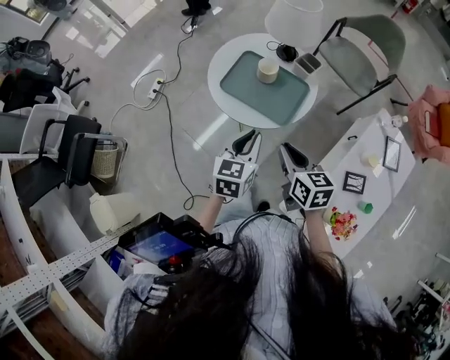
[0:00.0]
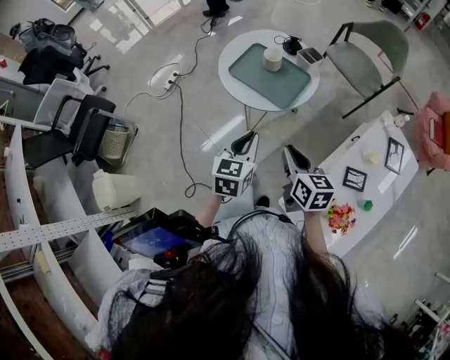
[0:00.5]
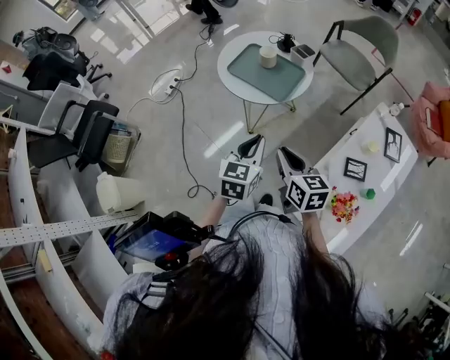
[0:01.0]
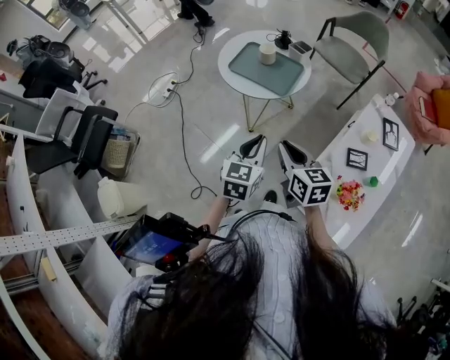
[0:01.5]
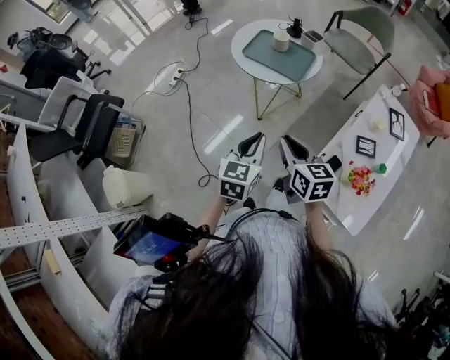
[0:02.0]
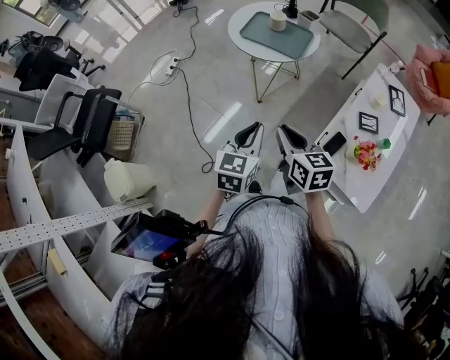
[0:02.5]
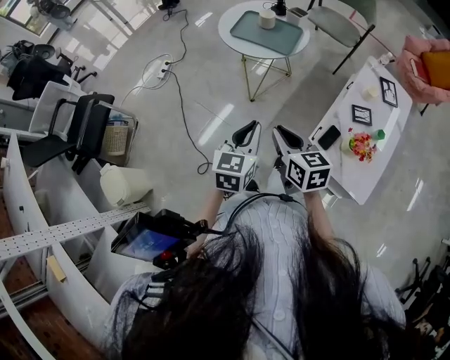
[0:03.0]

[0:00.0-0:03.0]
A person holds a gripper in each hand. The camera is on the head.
0:00.0 to 0:01.5: Both grippers travel together backward, some 20 cm.
0:01.5 to 0:03.0: Both grippers move backward and to the left, approximately 15 cm.

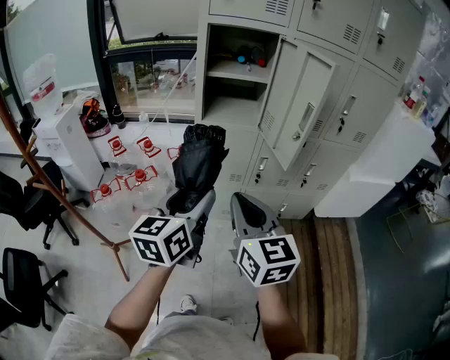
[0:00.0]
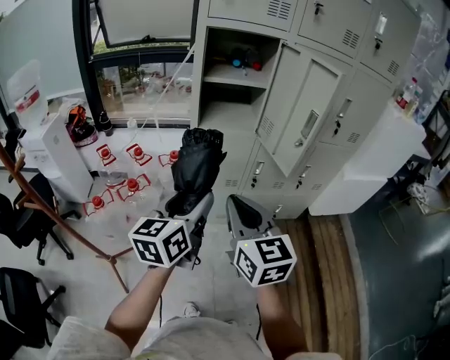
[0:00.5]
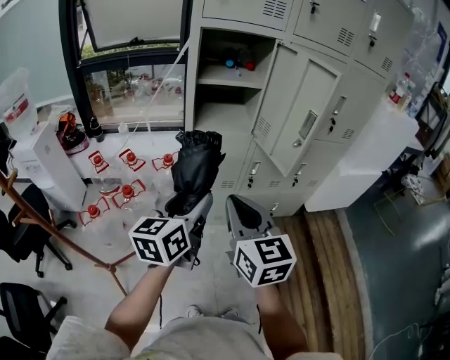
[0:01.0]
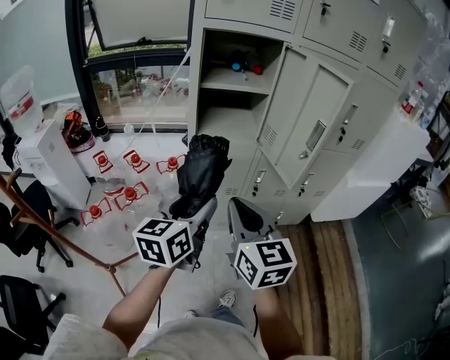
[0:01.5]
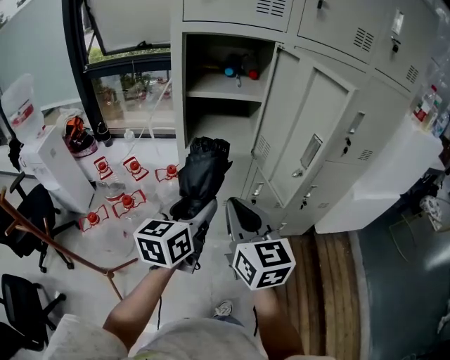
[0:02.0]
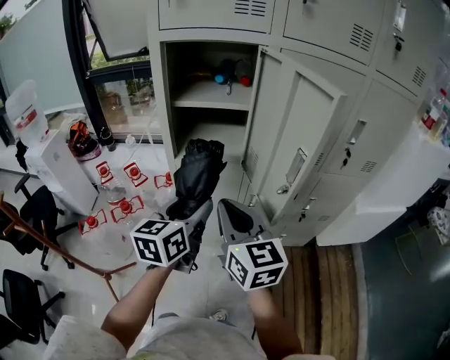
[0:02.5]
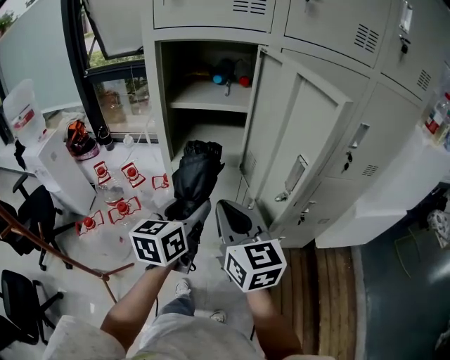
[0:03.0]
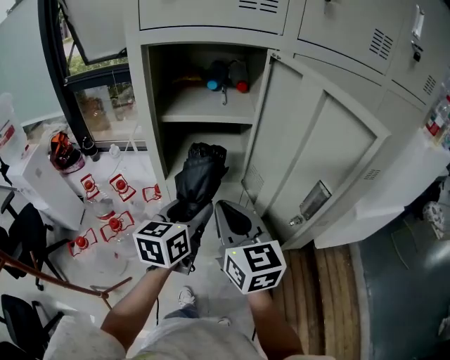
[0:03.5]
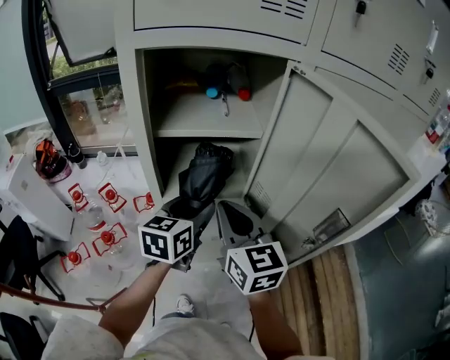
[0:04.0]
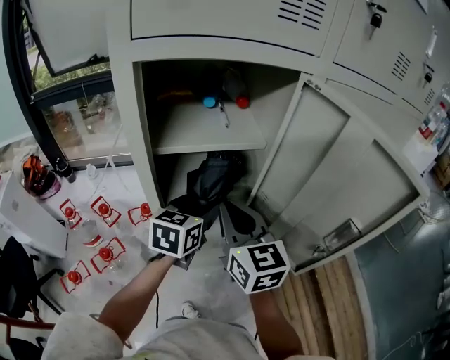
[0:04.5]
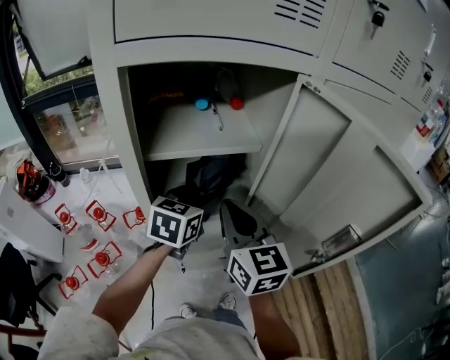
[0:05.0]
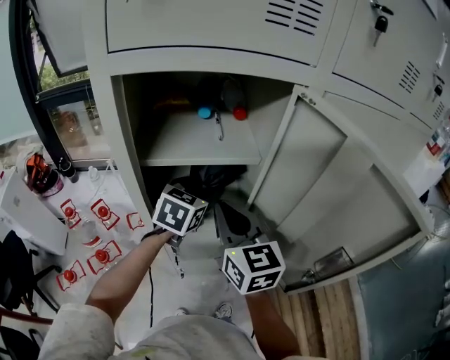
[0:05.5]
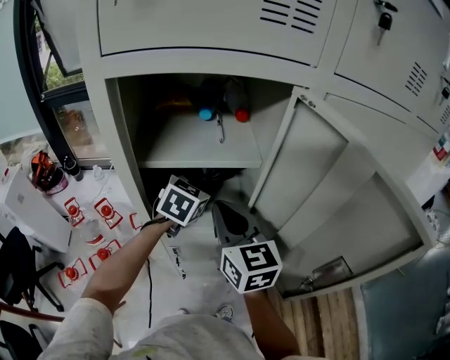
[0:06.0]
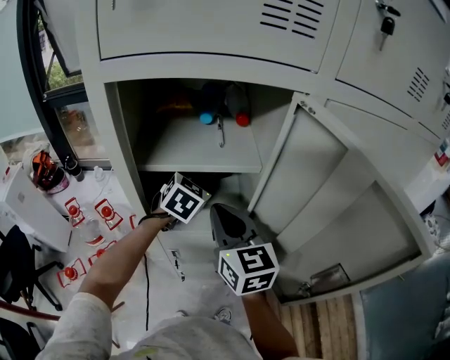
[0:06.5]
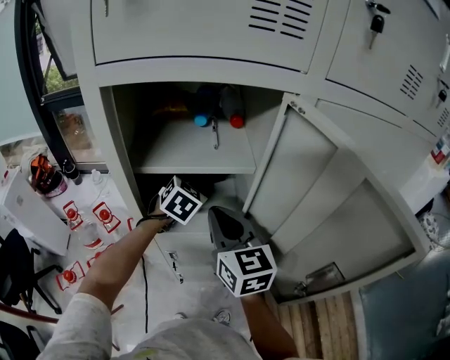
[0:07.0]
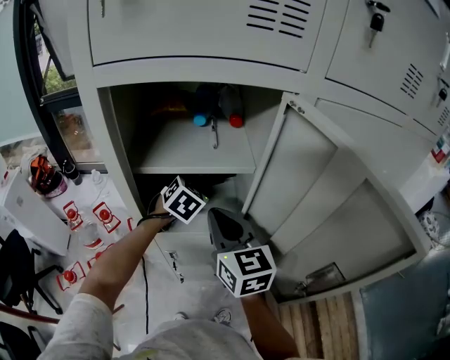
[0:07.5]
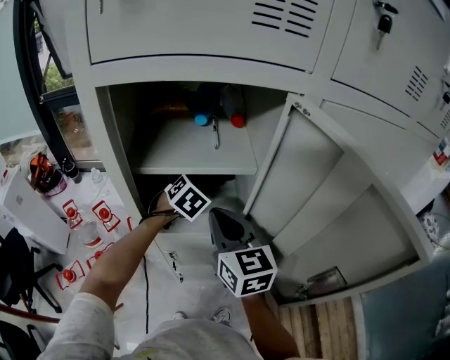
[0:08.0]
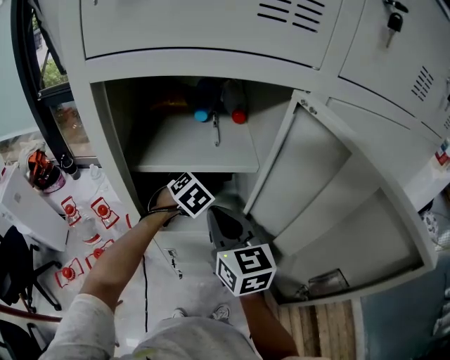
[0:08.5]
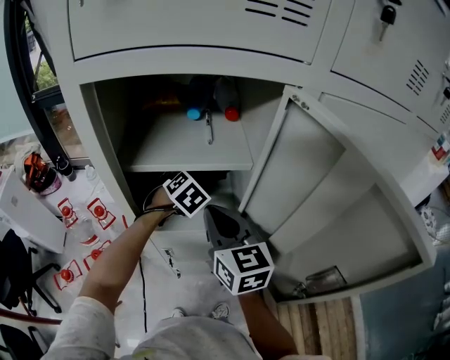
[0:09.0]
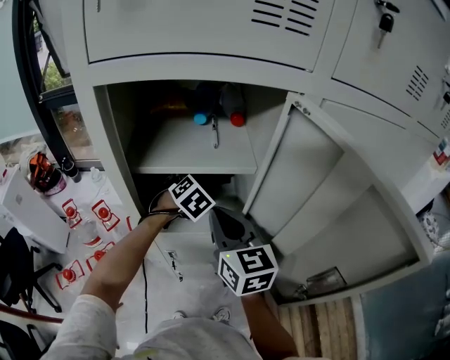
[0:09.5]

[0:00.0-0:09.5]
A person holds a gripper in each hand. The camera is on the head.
0:00.0 to 0:02.0: The two grippers go roughly 15 cm forward.
0:02.0 to 0:04.0: Both grippers move forward, about 20 cm.
0:04.0 to 0:05.5: The right gripper is displaced forward by approximately 5 cm, while the left gripper goes approximately 15 cm forward, and rotates roughly 20 degrees.
0:05.5 to 0:07.5: The left gripper heads forward, covering roughly 5 cm, and turns by some 20 degrees.
0:07.5 to 0:09.5: The grippers make only small movements.

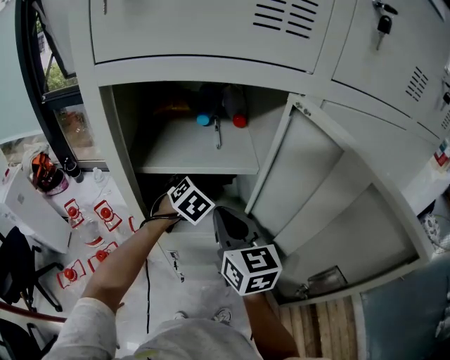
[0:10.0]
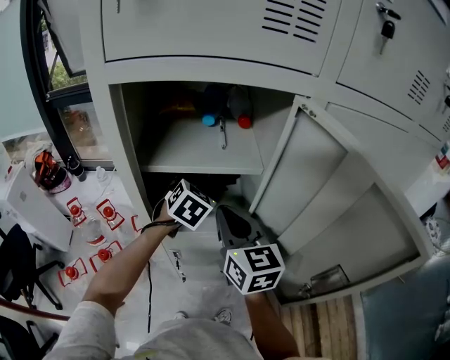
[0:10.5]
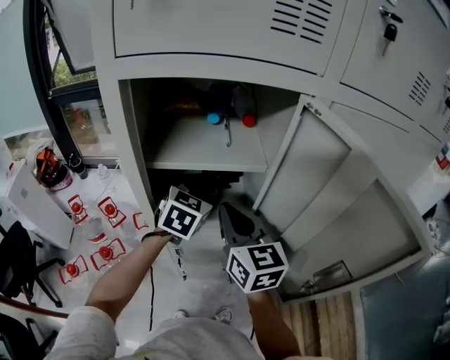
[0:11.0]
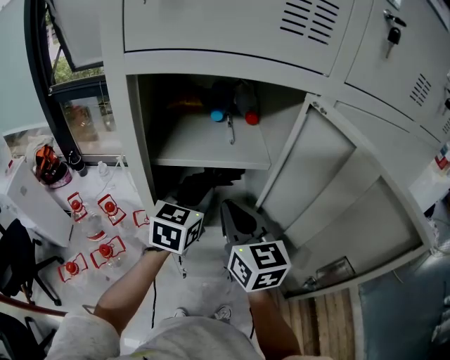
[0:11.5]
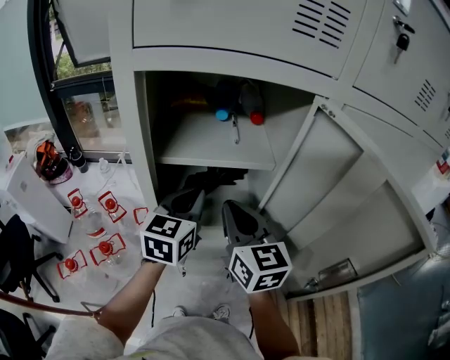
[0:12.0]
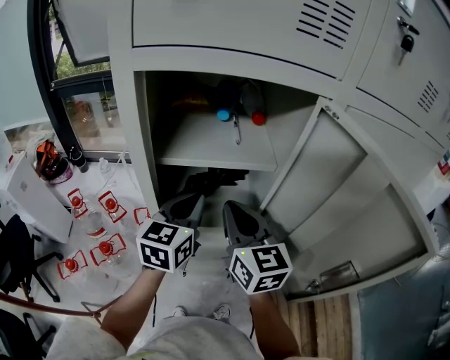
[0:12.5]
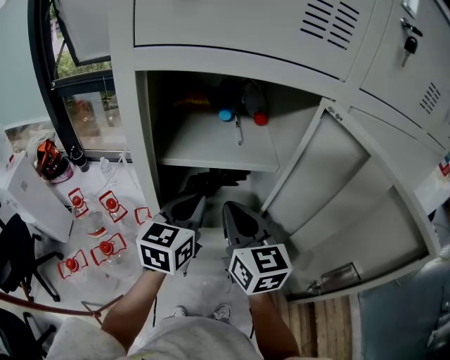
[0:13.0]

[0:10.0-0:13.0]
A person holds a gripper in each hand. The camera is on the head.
0:10.0 to 0:11.5: The left gripper moves upward and backward, about 10 cm, turns by roughly 40 degrees, and closes its fingers.
0:11.5 to 0:13.0: The grippers make only small movements.

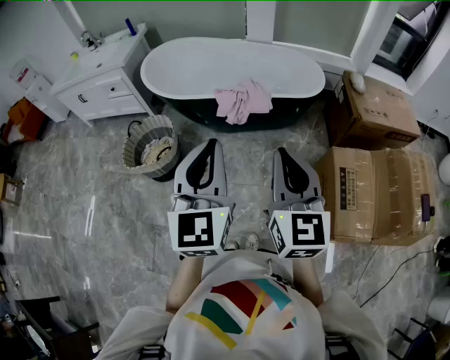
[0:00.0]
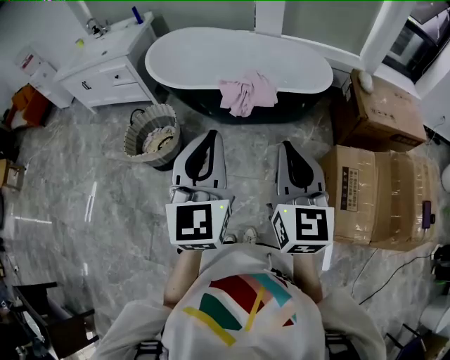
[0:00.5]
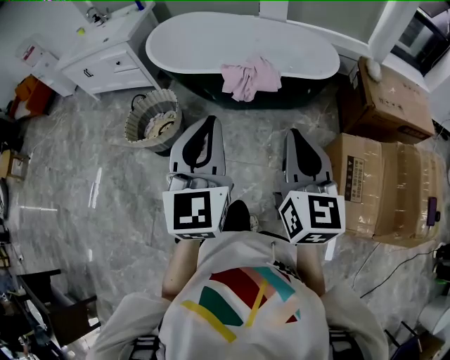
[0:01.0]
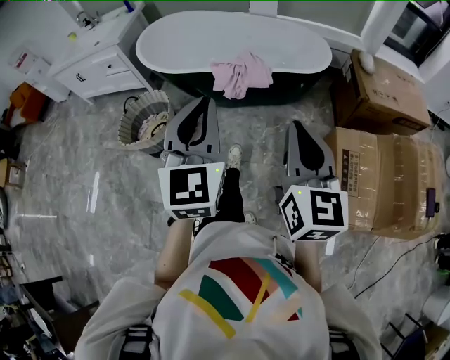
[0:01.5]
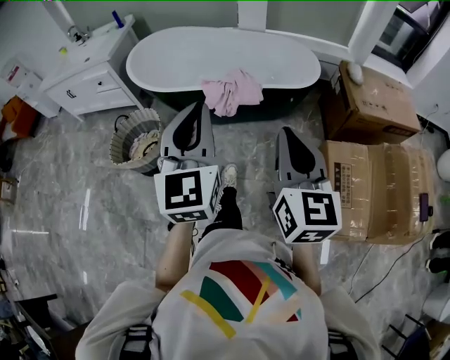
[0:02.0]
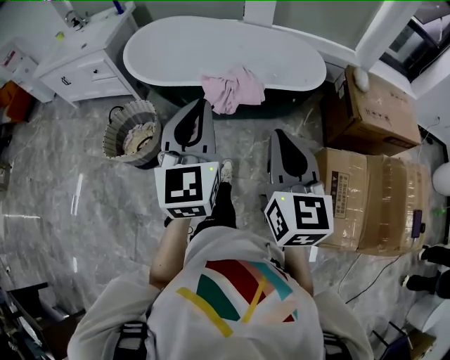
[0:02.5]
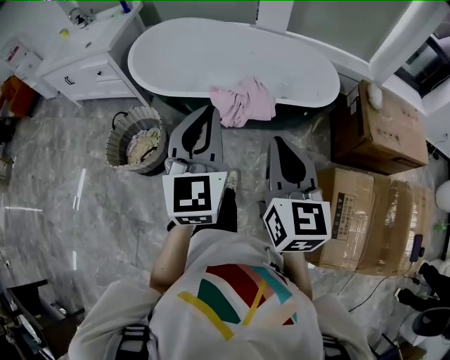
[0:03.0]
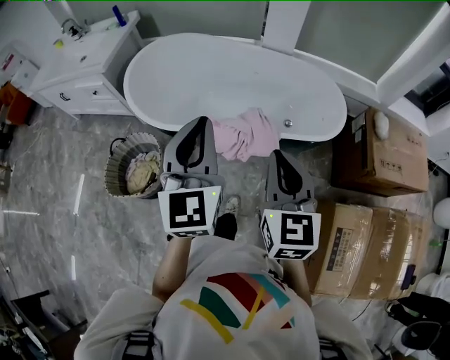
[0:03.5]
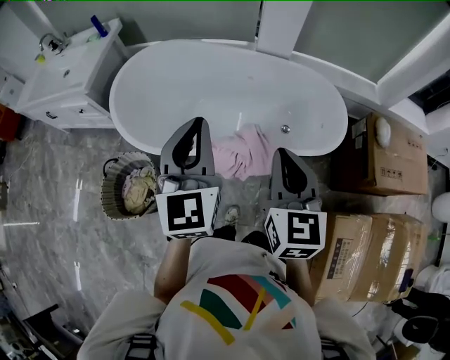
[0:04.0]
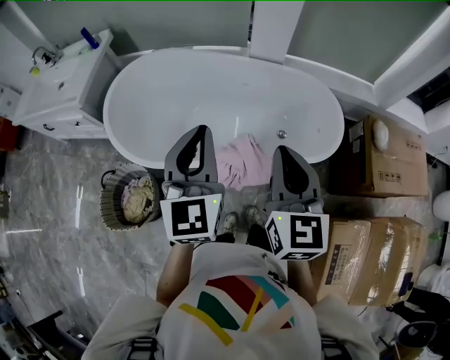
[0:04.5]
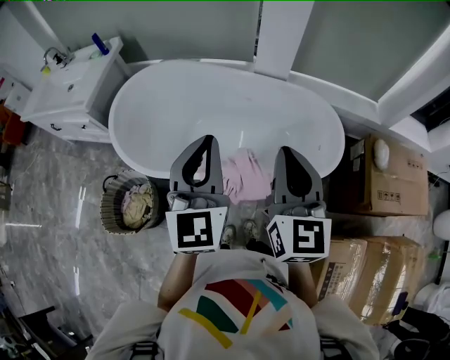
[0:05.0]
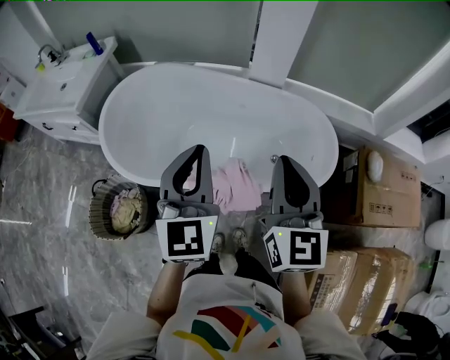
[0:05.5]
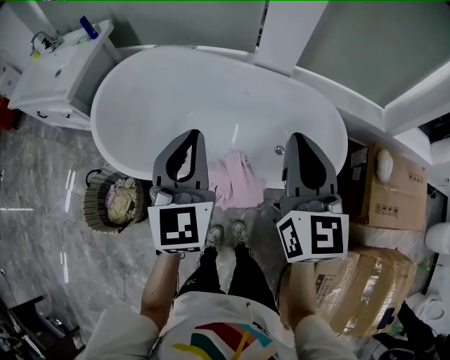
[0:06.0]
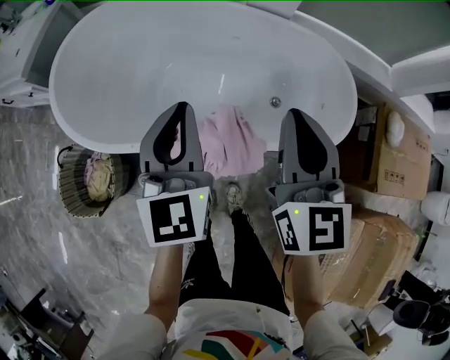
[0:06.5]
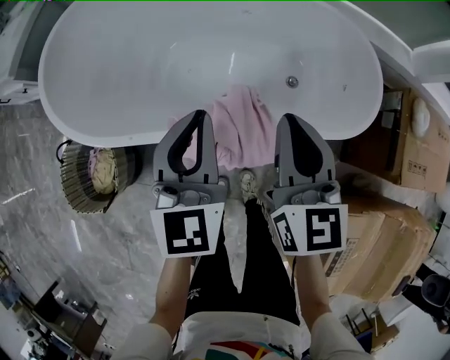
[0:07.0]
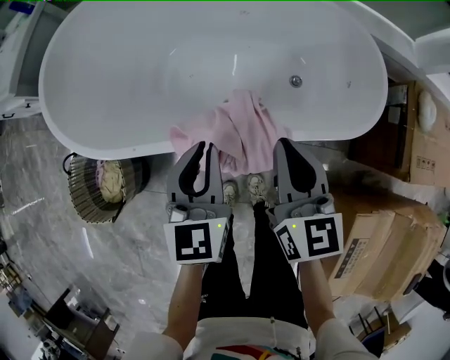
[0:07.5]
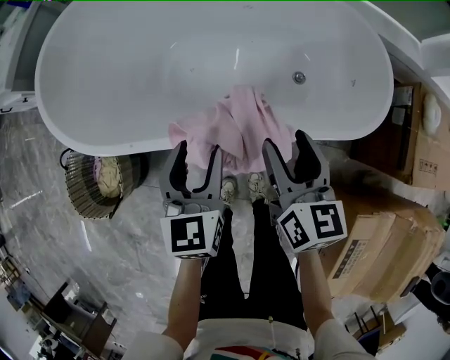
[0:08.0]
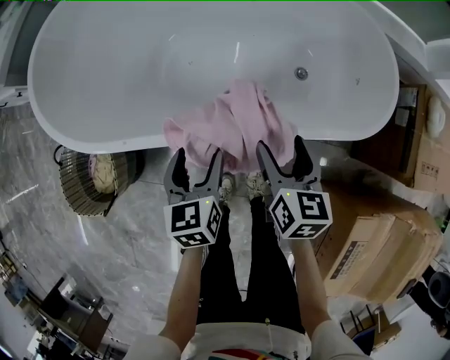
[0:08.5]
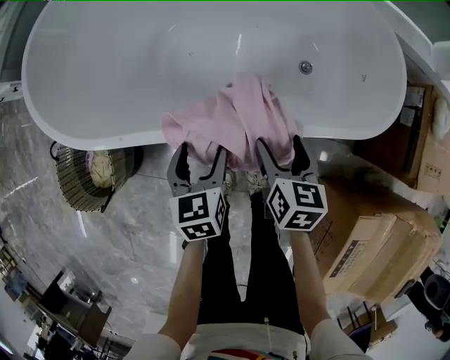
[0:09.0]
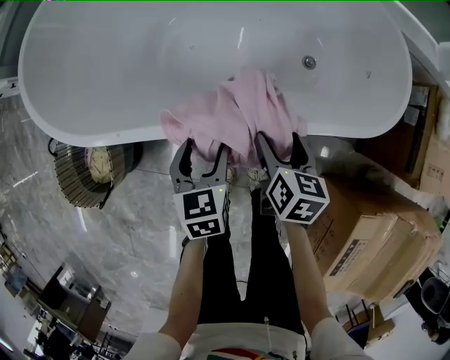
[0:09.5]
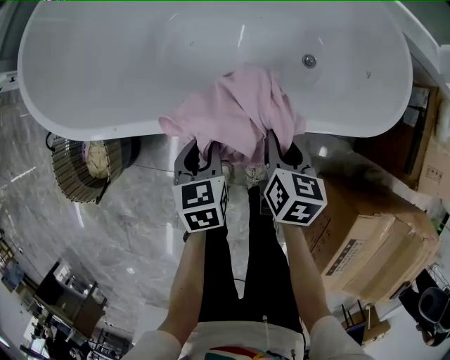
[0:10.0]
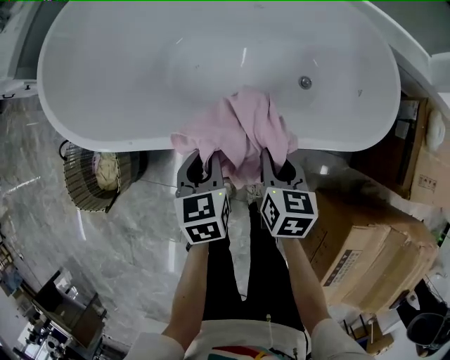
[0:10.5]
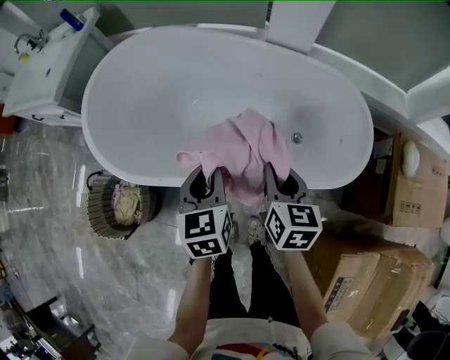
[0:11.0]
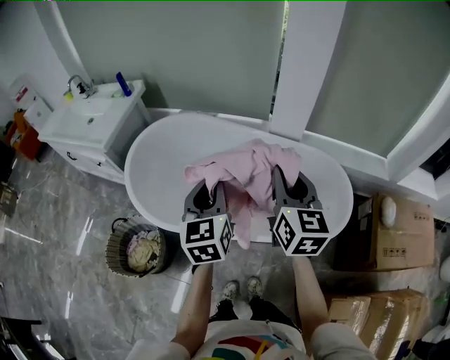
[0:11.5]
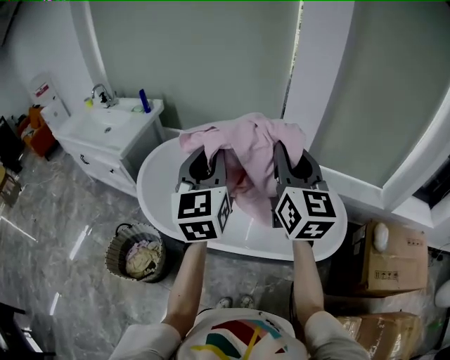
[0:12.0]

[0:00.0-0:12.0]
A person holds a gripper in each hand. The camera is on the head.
0:00.0 to 0:02.0: The left gripper moves forward, some 10 cm; the right gripper heads forward and to the right, covering some 10 cm.
0:02.0 to 0:04.0: The pair of grippers is taken forward, roughly 50 cm.
0:04.0 to 0:06.0: The two grippers go roughly 15 cm forward and to the right.
0:06.0 to 0:08.0: Both grippers travel together downward, approximately 35 cm. The right gripper swivels about 30 degrees, and opens up; the left gripper swivels roughly 30 degrees, and opens.
0:08.0 to 0:10.0: Both grippers travel together downward, approximately 15 cm. The right gripper rotates roughly 20 degrees, and closes its fingers, while the left gripper turns by about 20 degrees.
0:10.0 to 0:12.0: Both grippers travel together upward, roughly 70 cm. The left gripper points its fingers about 60 degrees further upward, while the right gripper tips its fingers upward by some 50 degrees.
